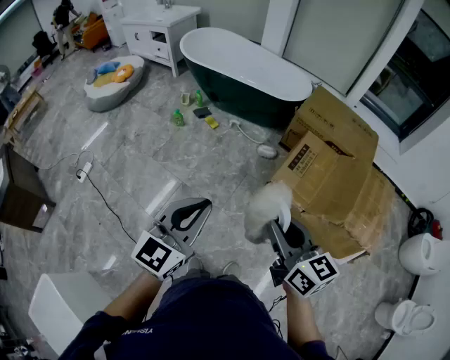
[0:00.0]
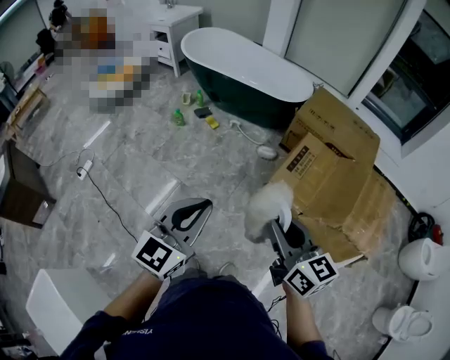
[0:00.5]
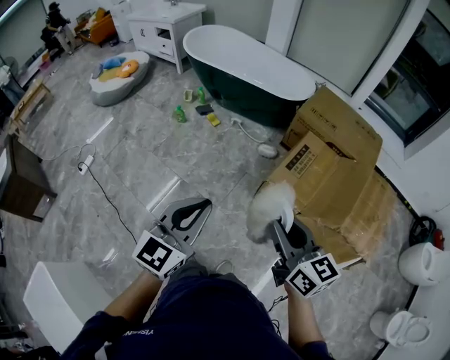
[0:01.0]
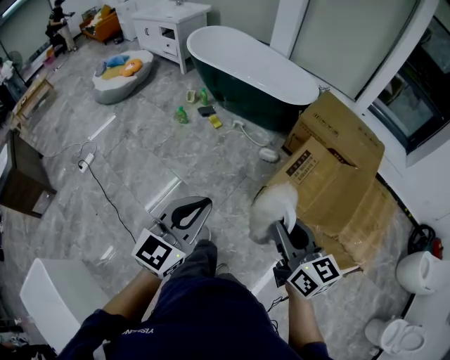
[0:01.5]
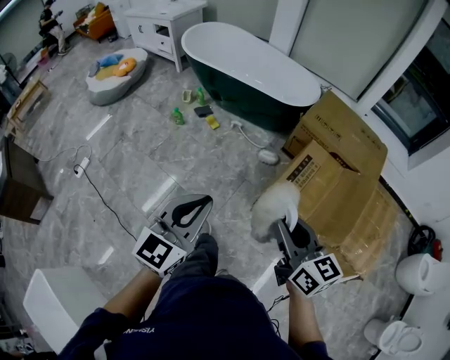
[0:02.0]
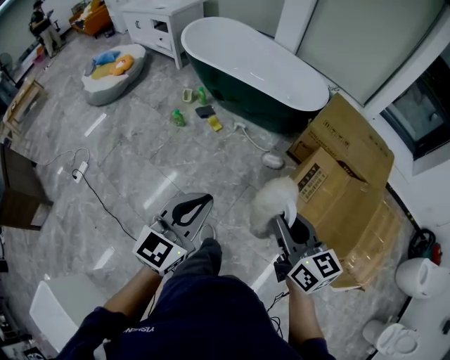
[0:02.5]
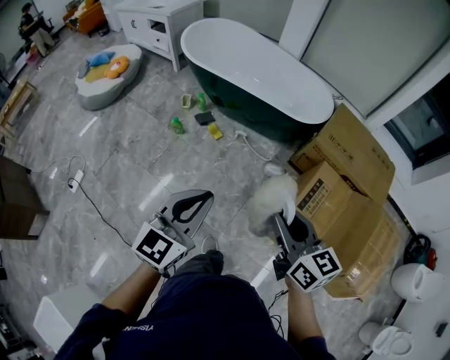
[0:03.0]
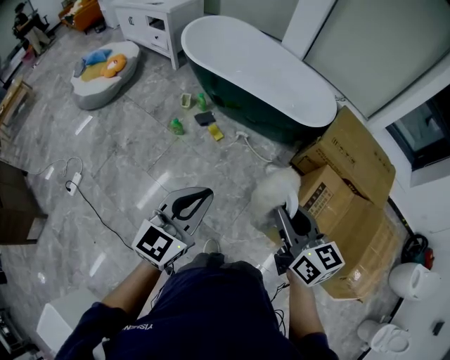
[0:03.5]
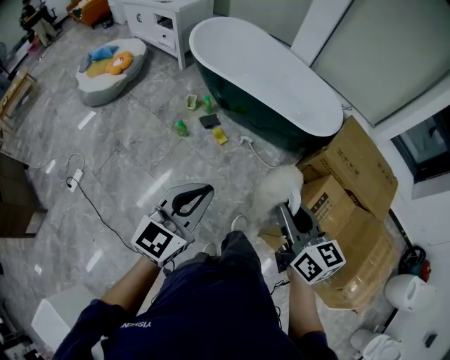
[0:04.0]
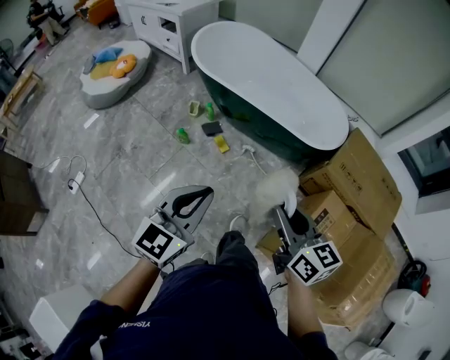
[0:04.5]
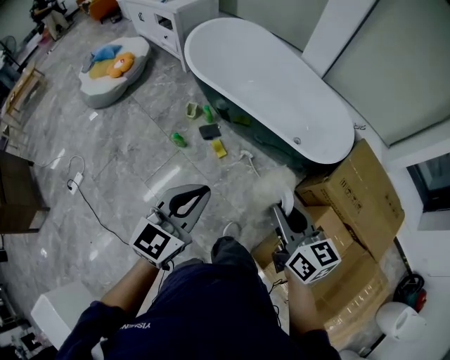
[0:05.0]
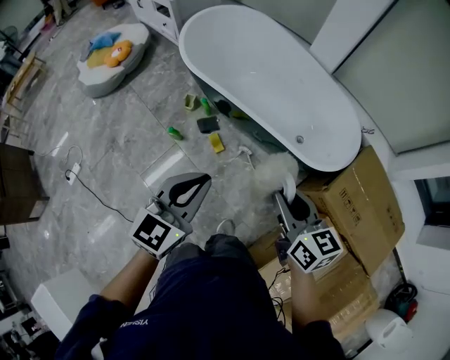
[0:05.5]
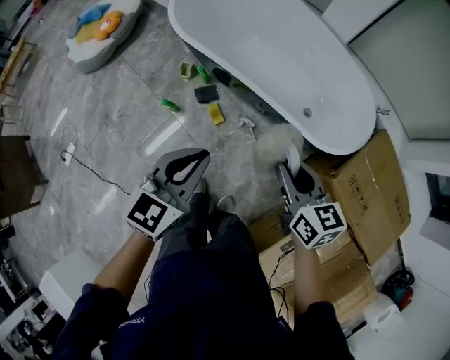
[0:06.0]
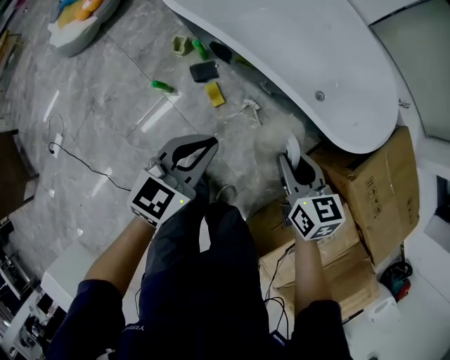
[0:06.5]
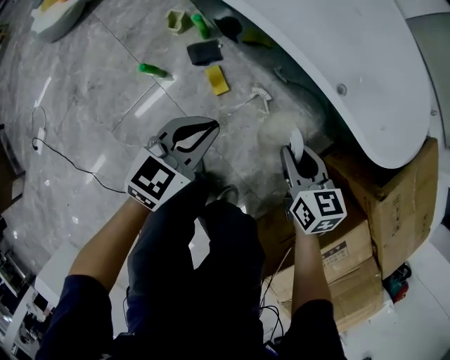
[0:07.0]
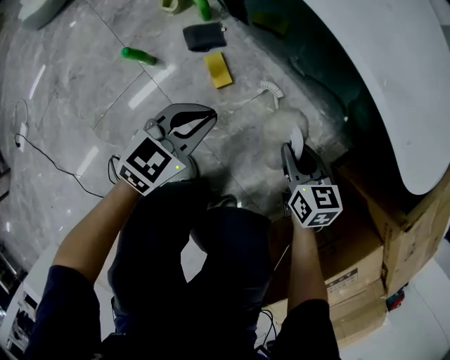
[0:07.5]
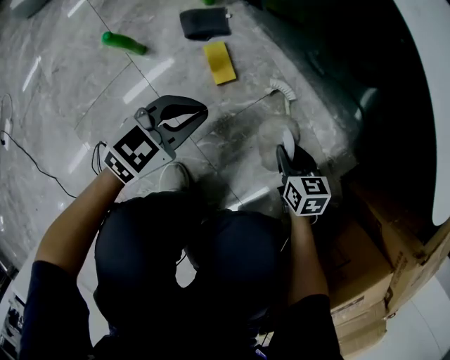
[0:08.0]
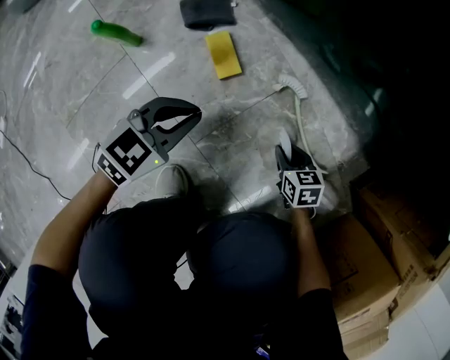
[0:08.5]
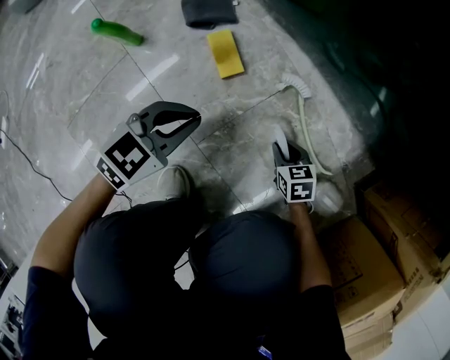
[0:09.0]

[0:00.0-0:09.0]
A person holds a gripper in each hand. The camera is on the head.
0:00.0 to 0:02.0: Both grippers travel together forward and to the right, about 10 cm.
0:02.0 to 0:04.5: Both grippers travel together forward, some 35 cm.
0:04.5 to 0:07.0: Both grippers travel together downward and forward, approximately 60 cm. The right gripper changes its angle by some 20 degrees, while the left gripper changes its angle by some 20 degrees.
0:07.0 to 0:09.0: Both grippers travel together downward, some 40 cm. The right gripper swivels approximately 30 degrees.

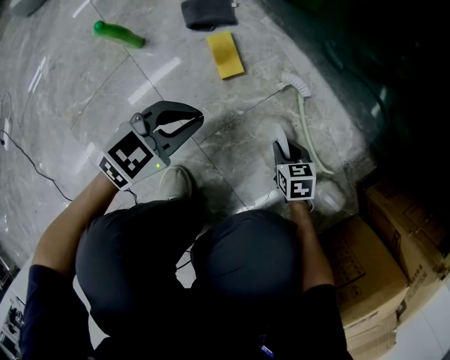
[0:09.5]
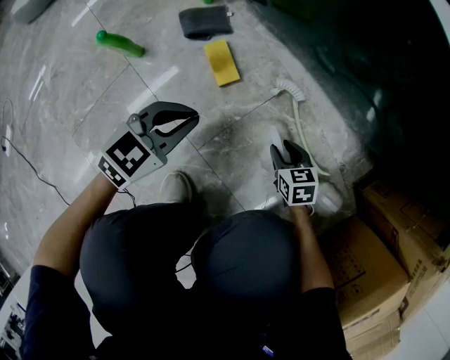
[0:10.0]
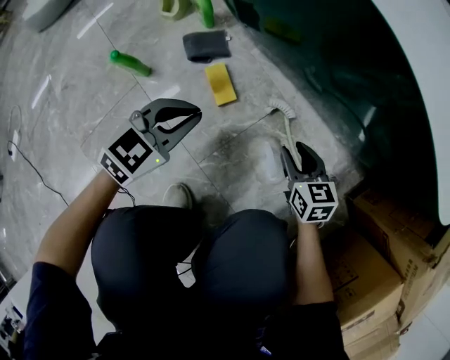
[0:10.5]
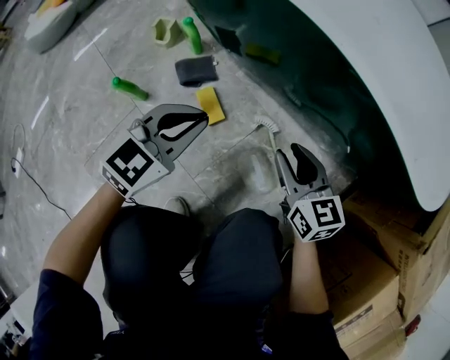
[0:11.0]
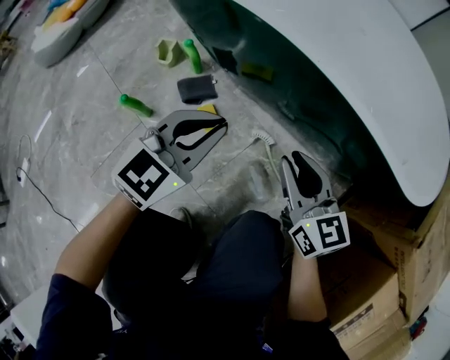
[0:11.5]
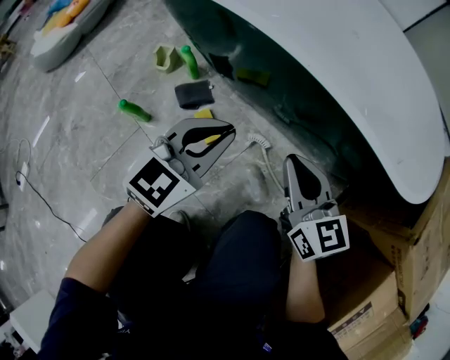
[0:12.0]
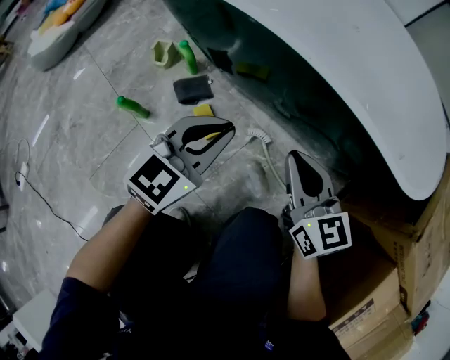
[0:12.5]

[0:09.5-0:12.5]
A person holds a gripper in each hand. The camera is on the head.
0:09.5 to 0:11.0: The right gripper moves upward, approximately 30 cm, and angles its fingers upward, by roughly 30 degrees; the left gripper is displaced upward and forward by roughly 20 cm.
0:11.0 to 0:12.5: The left gripper heads upward and to the right, covering about 10 cm, while the right gripper travels upward by some 10 cm, and closes its fingers.

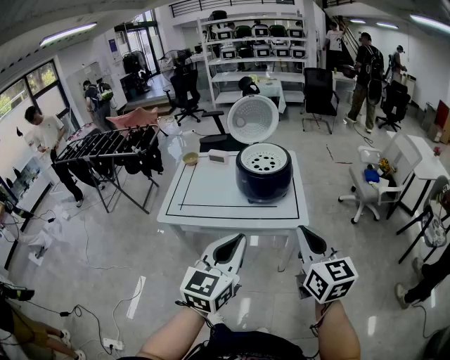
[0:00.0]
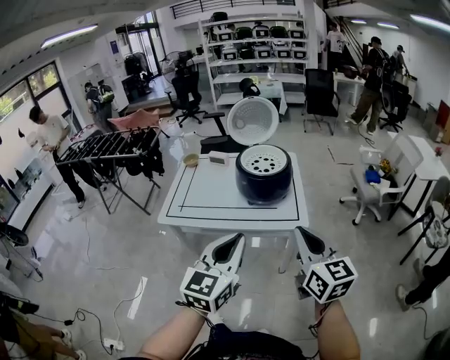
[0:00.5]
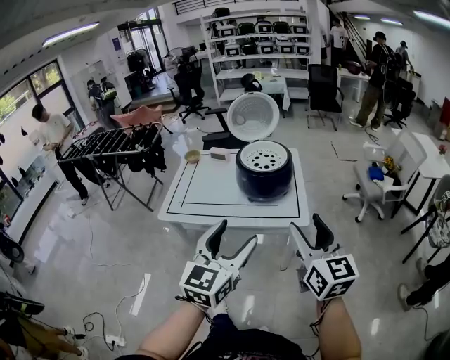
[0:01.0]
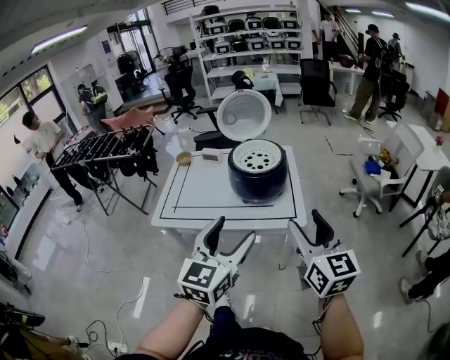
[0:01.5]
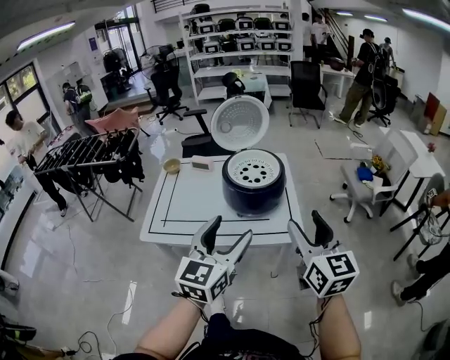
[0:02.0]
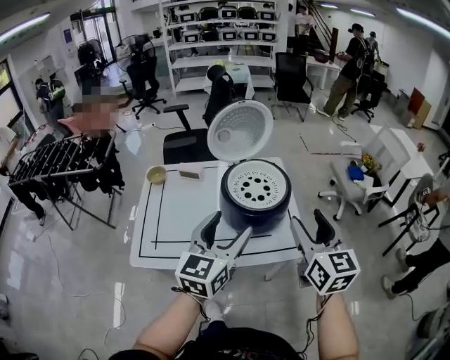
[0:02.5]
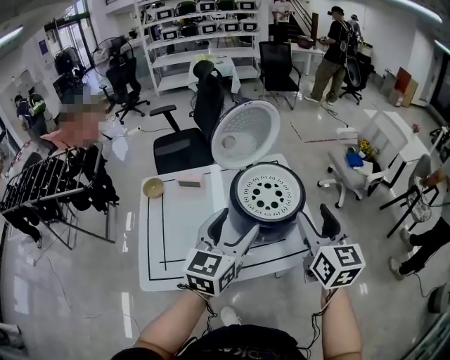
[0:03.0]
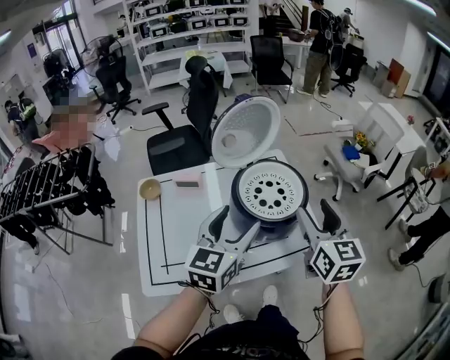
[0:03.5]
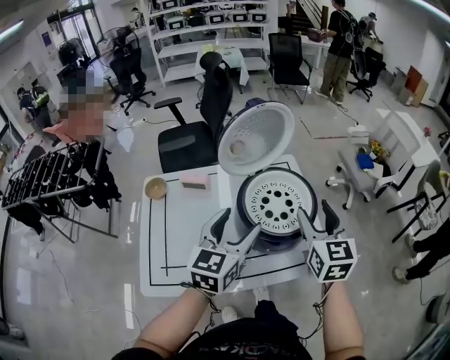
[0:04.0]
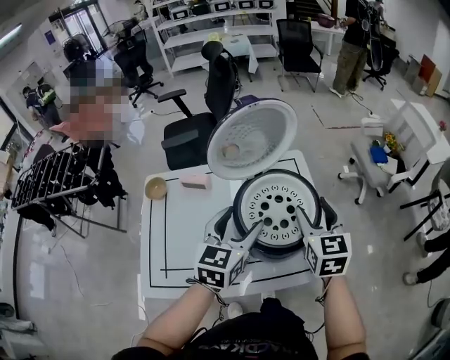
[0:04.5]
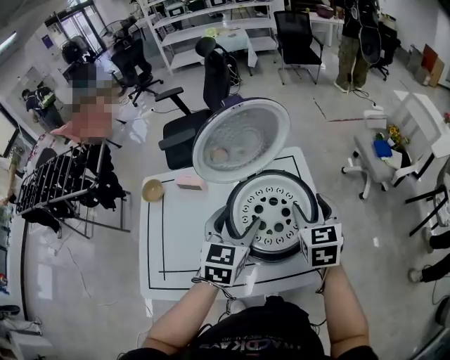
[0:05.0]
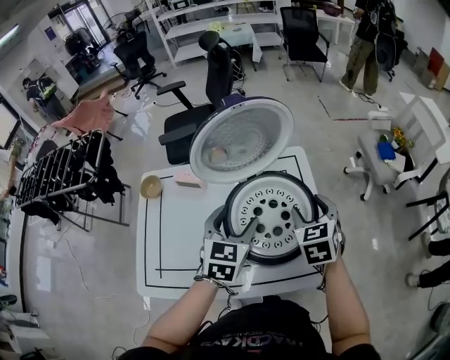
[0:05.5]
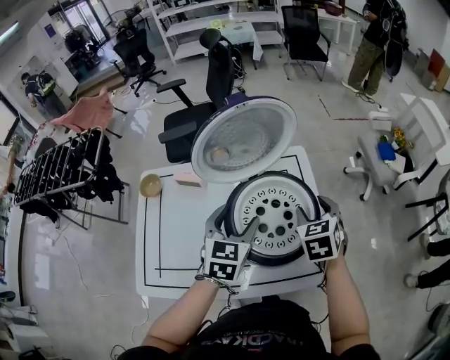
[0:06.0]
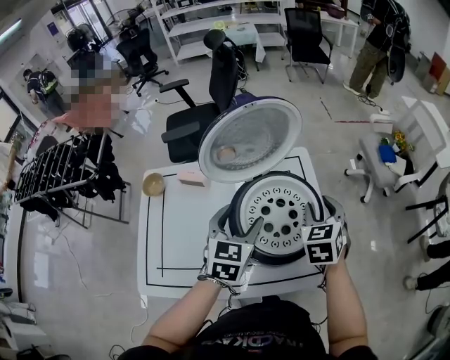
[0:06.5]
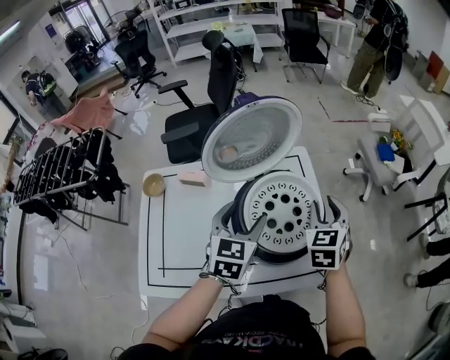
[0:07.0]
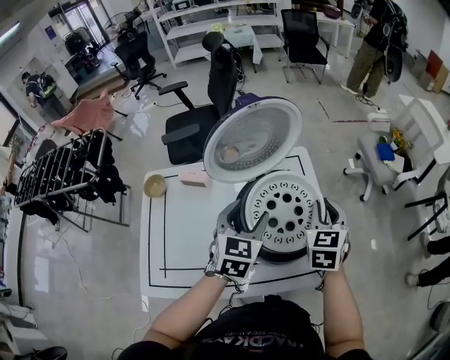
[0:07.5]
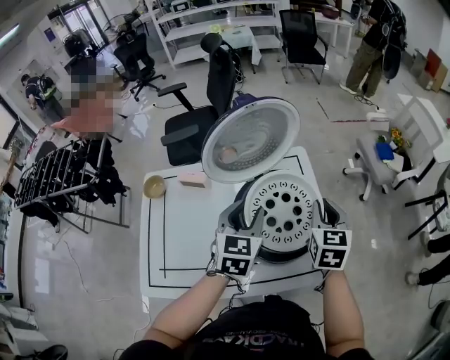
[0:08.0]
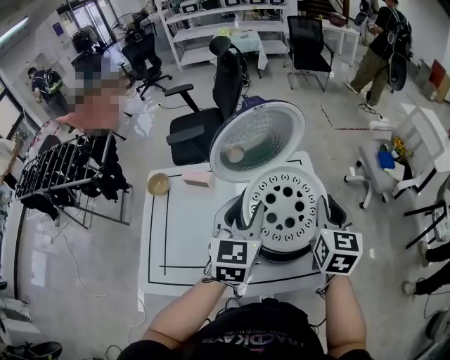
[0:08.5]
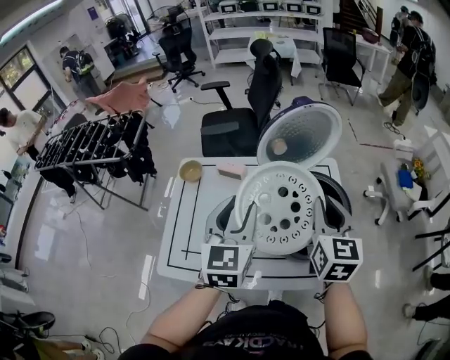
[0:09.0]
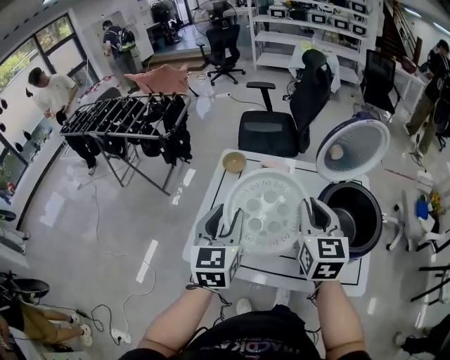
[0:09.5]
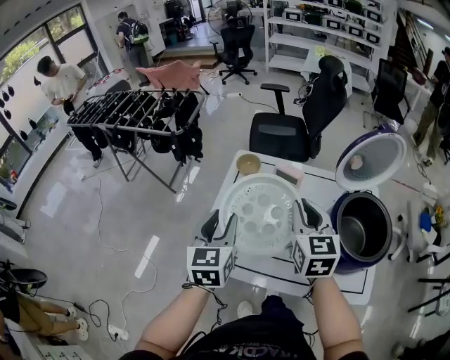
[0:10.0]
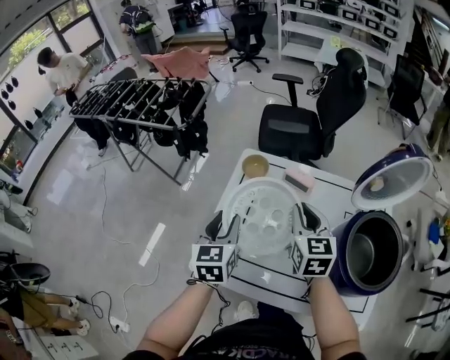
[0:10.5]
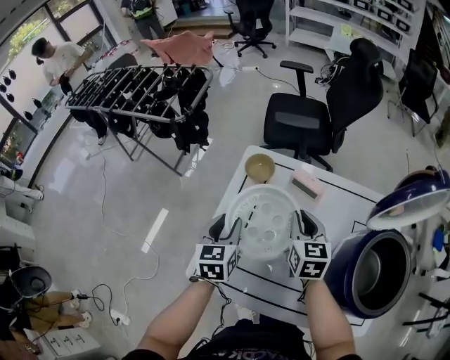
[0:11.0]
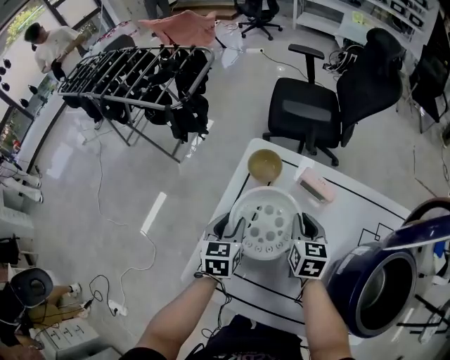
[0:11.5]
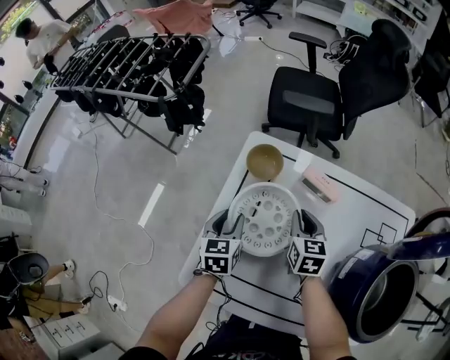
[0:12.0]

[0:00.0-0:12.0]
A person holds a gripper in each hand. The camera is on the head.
0:00.0 to 0:02.0: The two grippers go some 15 cm forward. The left gripper opens; the right gripper opens.
0:02.0 to 0:04.0: The two grippers go approximately 30 cm forward and to the left. The right gripper swivels about 20 degrees.
0:04.0 to 0:06.0: The left gripper goes some 15 cm forward and downward, and turns by some 20 degrees; the right gripper heads downward and forward, covering approximately 20 cm, and changes its angle by some 30 degrees.
0:06.0 to 0:08.0: The right gripper turns by approximately 20 degrees, and closes its fingers. Meanwhile the left gripper closes its fingers.
0:08.0 to 0:10.0: The right gripper changes place by some 40 cm, and rotates approximately 30 degrees. The left gripper ends up roughly 40 cm from where it was, and swivels roughly 40 degrees.
0:10.0 to 0:12.0: The grippers both shift downward and forward by roughly 35 cm. The left gripper changes its angle by some 20 degrees, while the right gripper turns by approximately 20 degrees.

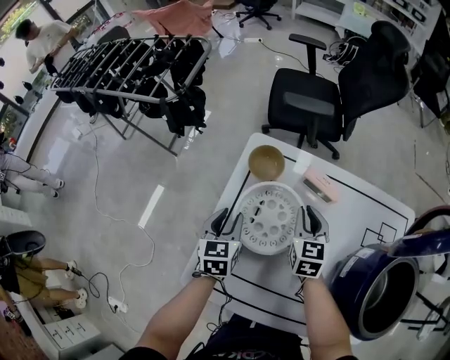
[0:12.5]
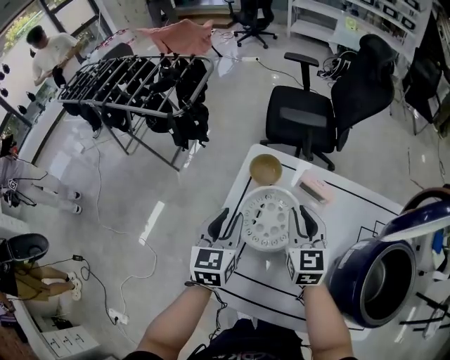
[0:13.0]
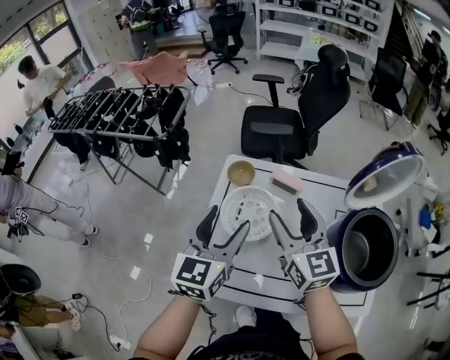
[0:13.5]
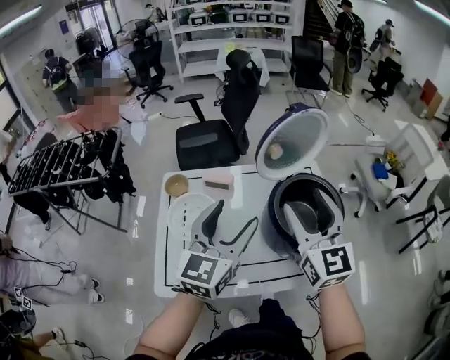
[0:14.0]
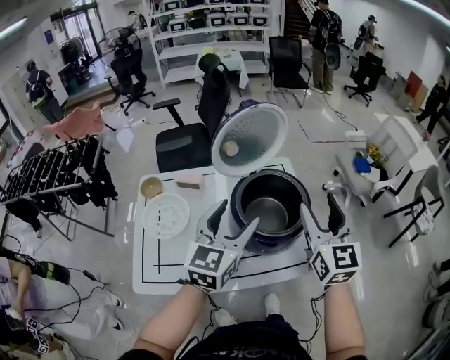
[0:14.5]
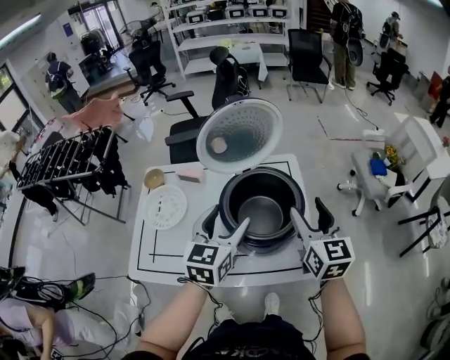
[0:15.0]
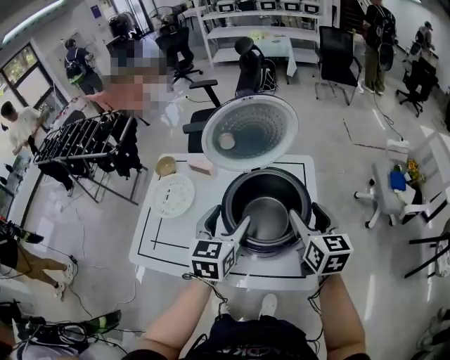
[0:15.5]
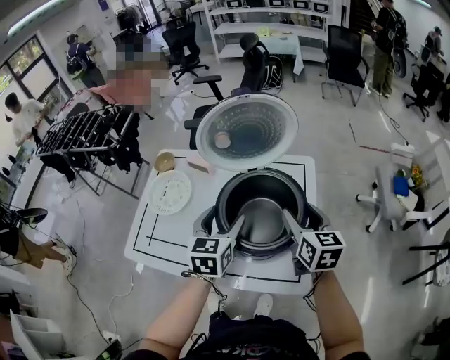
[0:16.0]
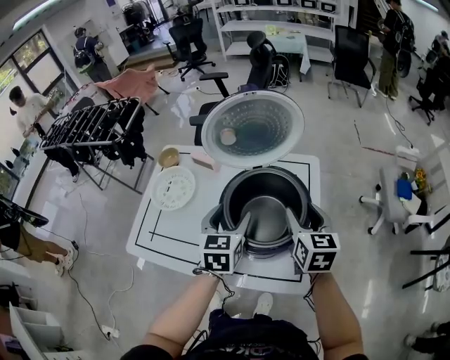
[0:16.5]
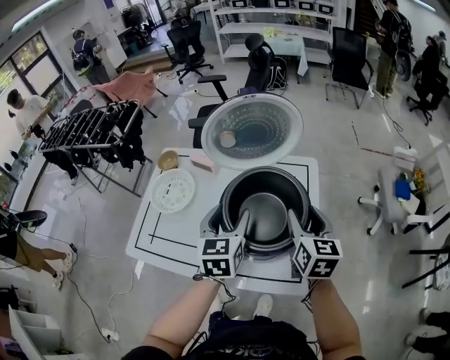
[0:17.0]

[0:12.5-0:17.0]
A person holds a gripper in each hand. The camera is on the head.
0:12.5 to 0:14.5: Both grippers are carried roughly 40 cm. The right gripper swivels roughly 40 degrees, and opens up; the left gripper turns by roughly 50 degrees, and opens up.
0:14.5 to 0:17.0: Both grippers travel together downward, roughly 10 cm. The left gripper changes its angle by roughly 40 degrees; the right gripper turns by about 30 degrees.
